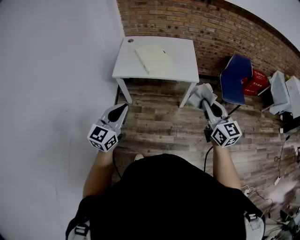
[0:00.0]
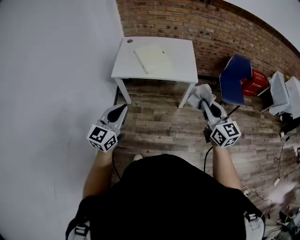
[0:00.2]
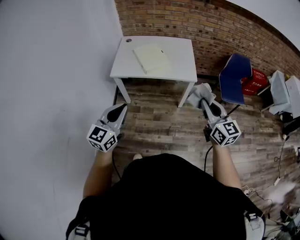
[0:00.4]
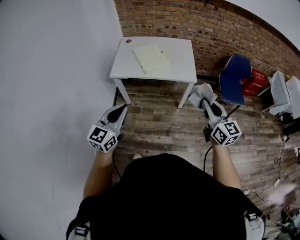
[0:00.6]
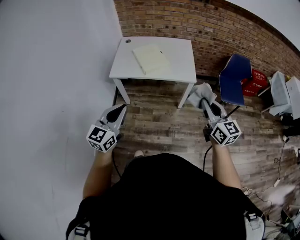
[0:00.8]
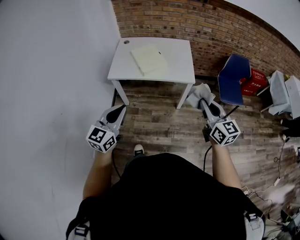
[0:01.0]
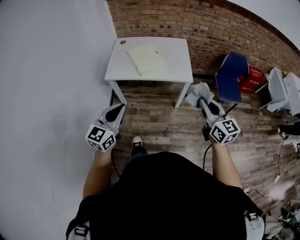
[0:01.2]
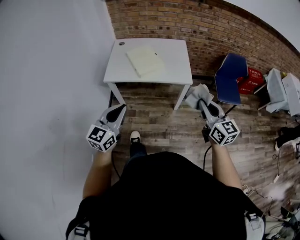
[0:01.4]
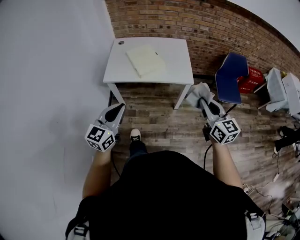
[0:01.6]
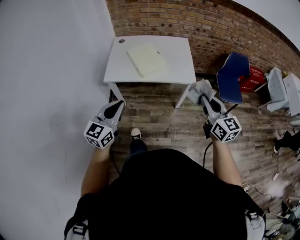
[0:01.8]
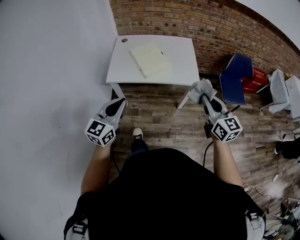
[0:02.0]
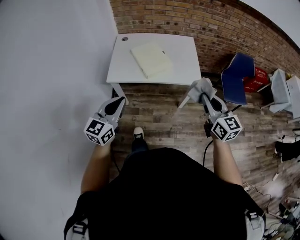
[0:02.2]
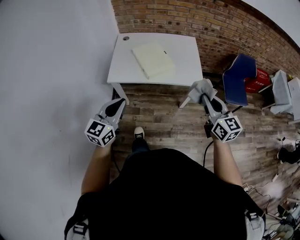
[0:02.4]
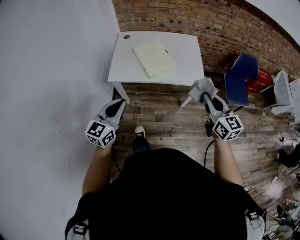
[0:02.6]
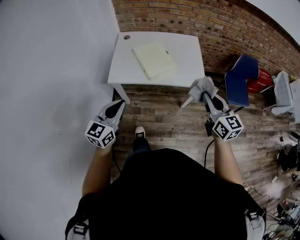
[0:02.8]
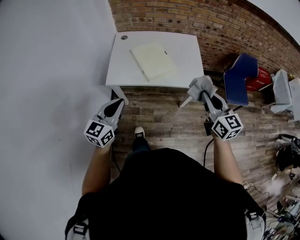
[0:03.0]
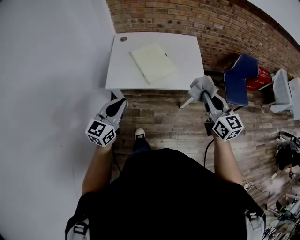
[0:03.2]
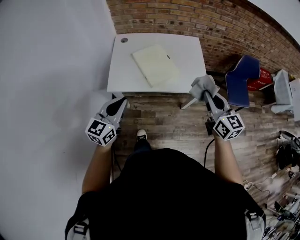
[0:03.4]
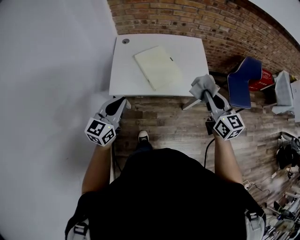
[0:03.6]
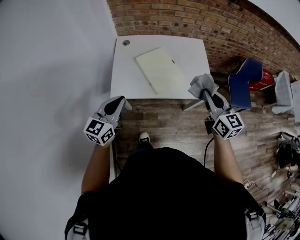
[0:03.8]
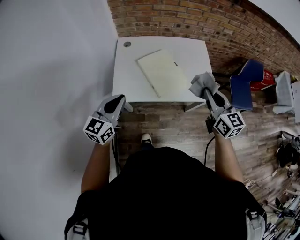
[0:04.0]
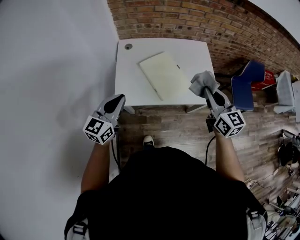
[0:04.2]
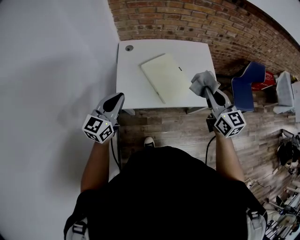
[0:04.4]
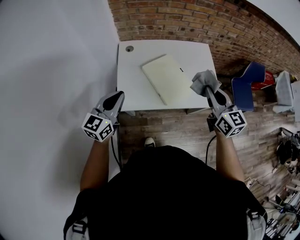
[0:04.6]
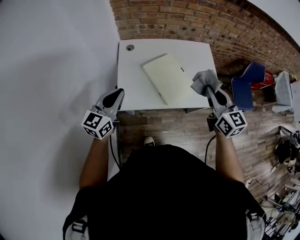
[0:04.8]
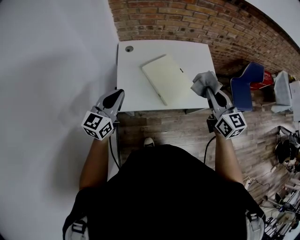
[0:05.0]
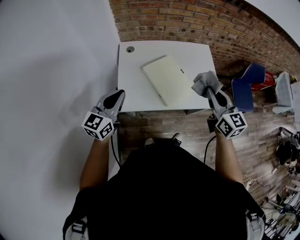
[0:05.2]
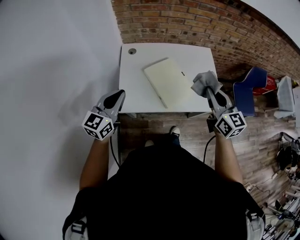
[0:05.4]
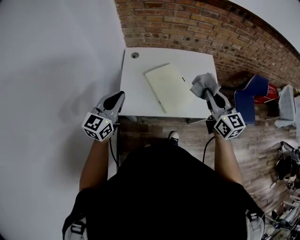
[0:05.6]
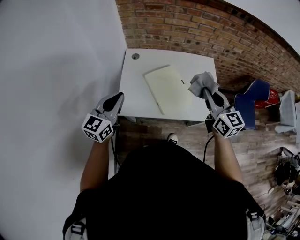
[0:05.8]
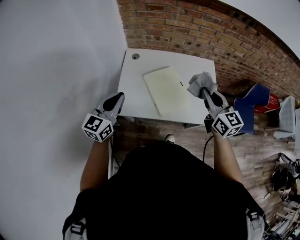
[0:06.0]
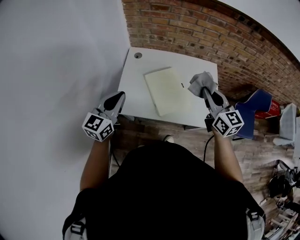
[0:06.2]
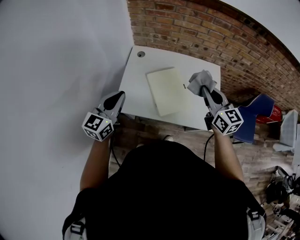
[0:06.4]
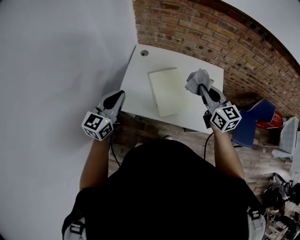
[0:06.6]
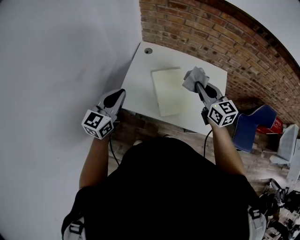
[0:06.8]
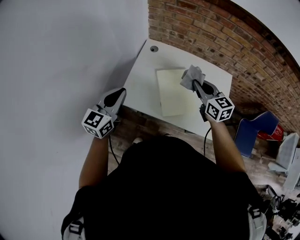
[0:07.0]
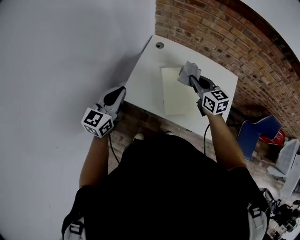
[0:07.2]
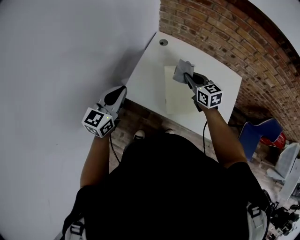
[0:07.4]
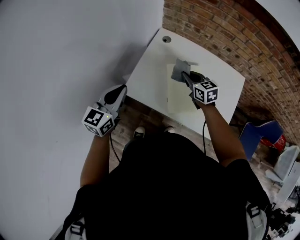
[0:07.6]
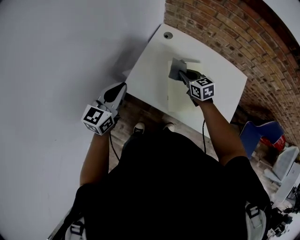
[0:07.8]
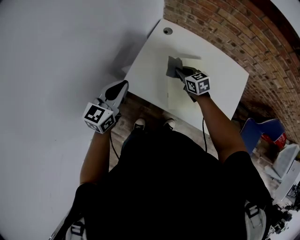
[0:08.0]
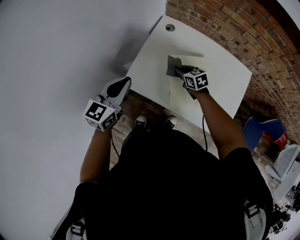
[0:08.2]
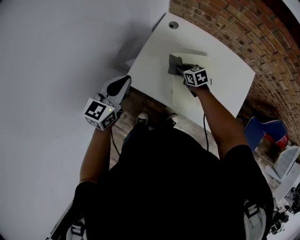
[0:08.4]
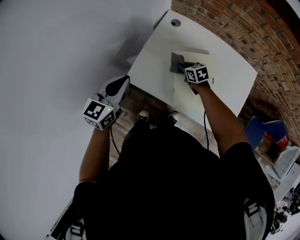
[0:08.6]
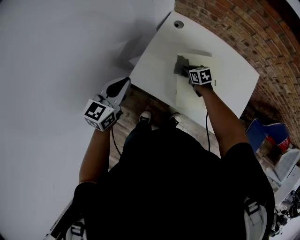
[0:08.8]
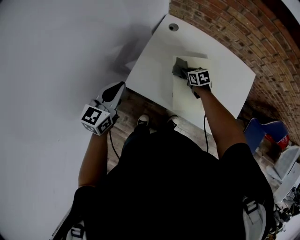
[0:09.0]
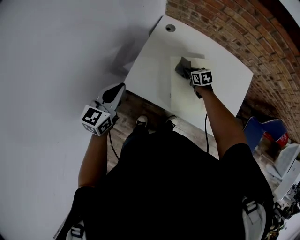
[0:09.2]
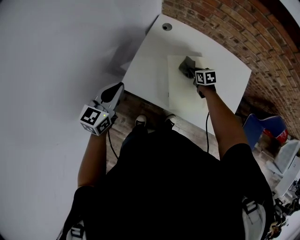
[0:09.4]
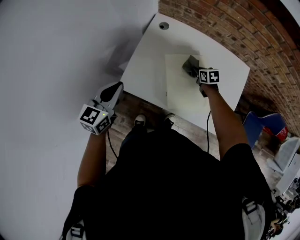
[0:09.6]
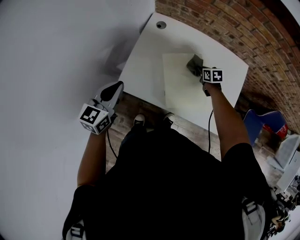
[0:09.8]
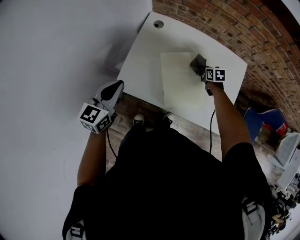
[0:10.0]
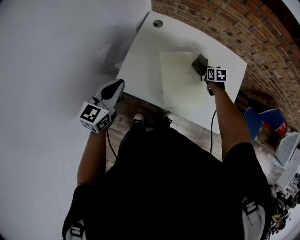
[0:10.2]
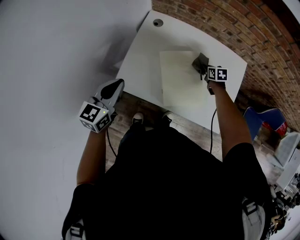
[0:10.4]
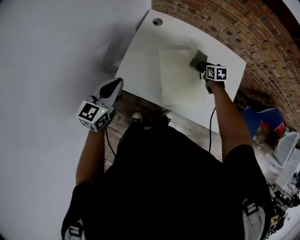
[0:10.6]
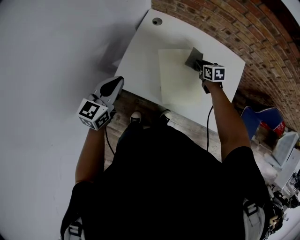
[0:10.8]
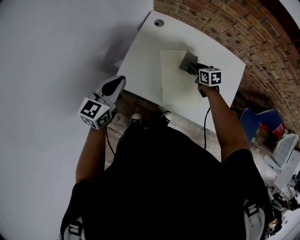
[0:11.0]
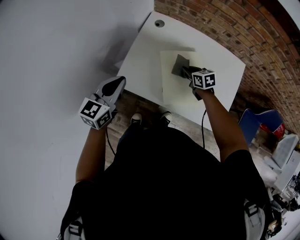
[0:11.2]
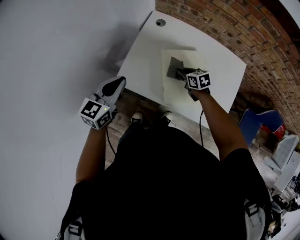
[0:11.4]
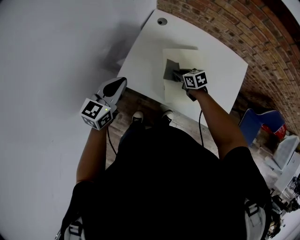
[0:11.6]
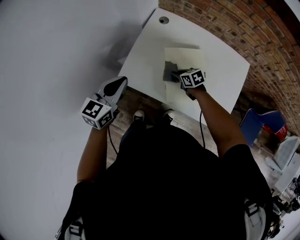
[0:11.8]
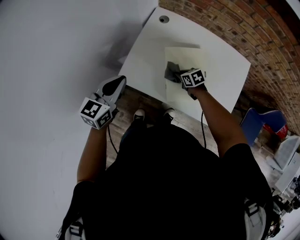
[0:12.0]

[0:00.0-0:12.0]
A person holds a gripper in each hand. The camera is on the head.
0.0 to 1.6 s: The two grippers go roughly 5 cm forward.
1.6 to 3.0 s: The grippers both shift forward and to the left by roughly 15 cm.
3.0 to 4.4 s: Both grippers travel together forward and to the left, some 25 cm.
4.4 to 6.0 s: The right gripper is displaced forward by roughly 5 cm.
6.0 to 7.6 s: The left gripper ends up about 5 cm from where it was, and changes its angle by approximately 20 degrees, while the right gripper changes place by approximately 30 cm, and swivels roughly 40 degrees.
7.6 to 9.0 s: The right gripper heads downward, covering about 20 cm, and rotates about 20 degrees.
9.0 to 10.4 s: The right gripper goes some 20 cm to the right, while the left gripper changes place by roughly 5 cm.
10.4 to 12.0 s: The right gripper is displaced to the left by some 20 cm, and changes its angle by about 30 degrees.

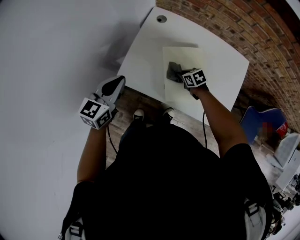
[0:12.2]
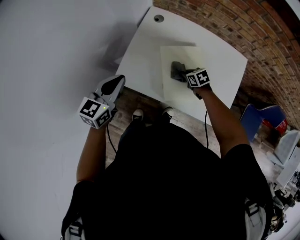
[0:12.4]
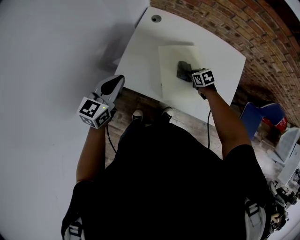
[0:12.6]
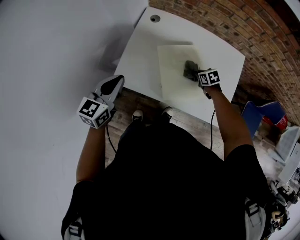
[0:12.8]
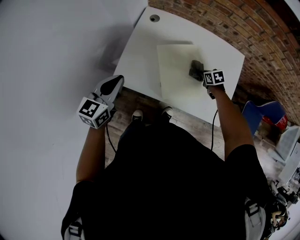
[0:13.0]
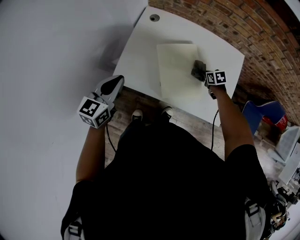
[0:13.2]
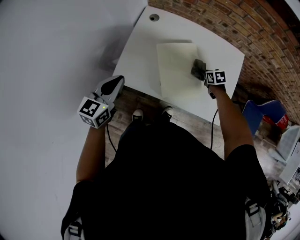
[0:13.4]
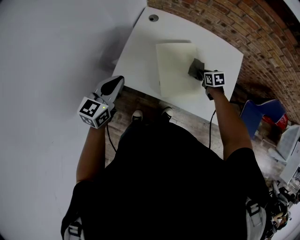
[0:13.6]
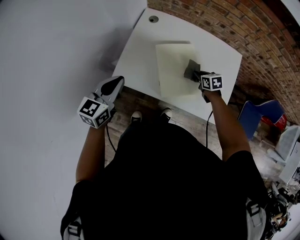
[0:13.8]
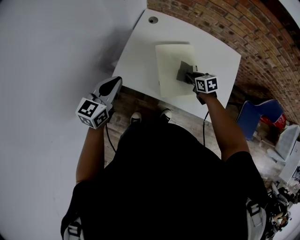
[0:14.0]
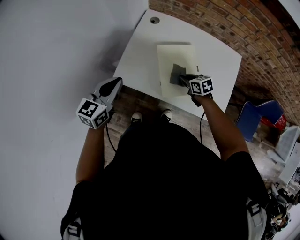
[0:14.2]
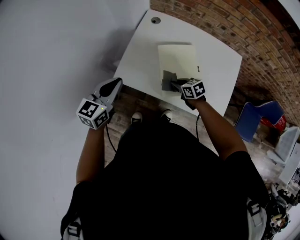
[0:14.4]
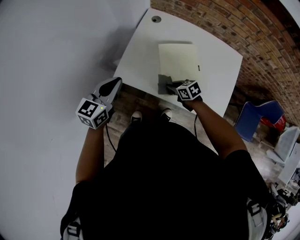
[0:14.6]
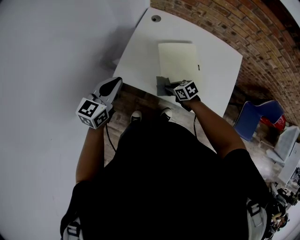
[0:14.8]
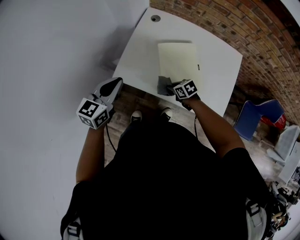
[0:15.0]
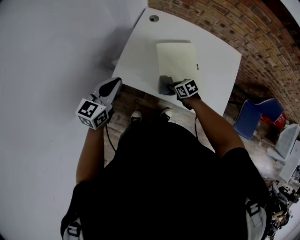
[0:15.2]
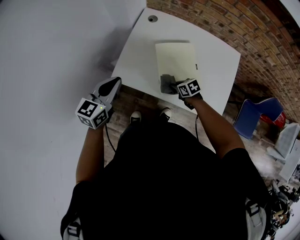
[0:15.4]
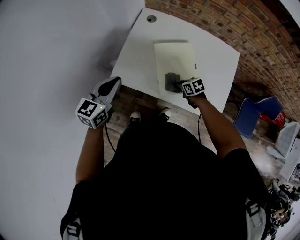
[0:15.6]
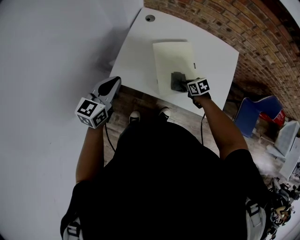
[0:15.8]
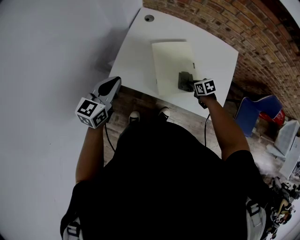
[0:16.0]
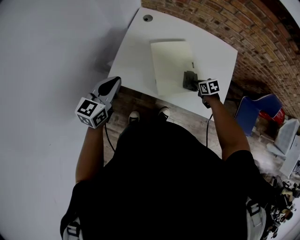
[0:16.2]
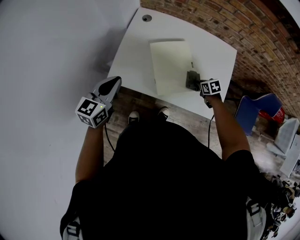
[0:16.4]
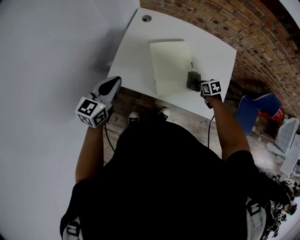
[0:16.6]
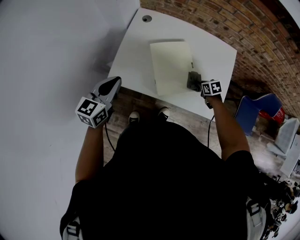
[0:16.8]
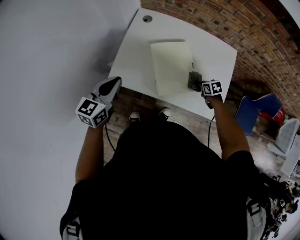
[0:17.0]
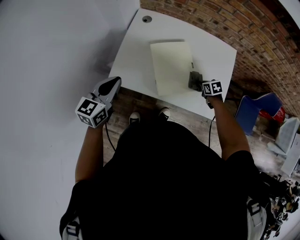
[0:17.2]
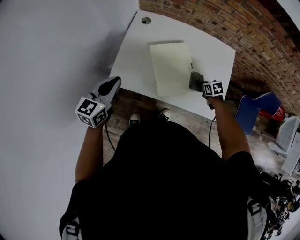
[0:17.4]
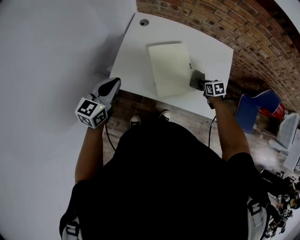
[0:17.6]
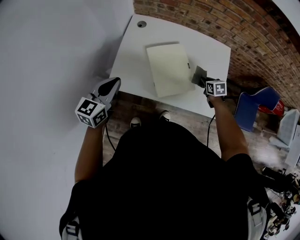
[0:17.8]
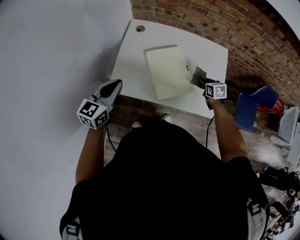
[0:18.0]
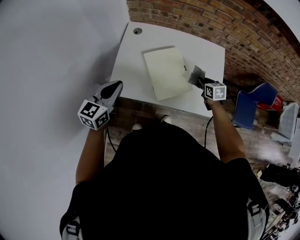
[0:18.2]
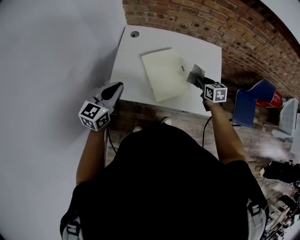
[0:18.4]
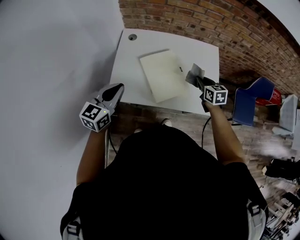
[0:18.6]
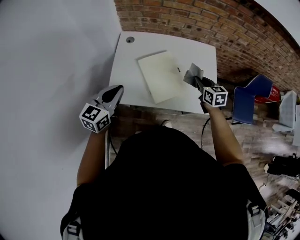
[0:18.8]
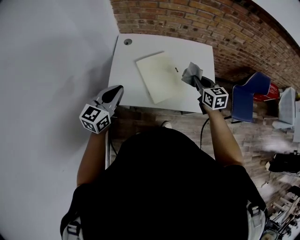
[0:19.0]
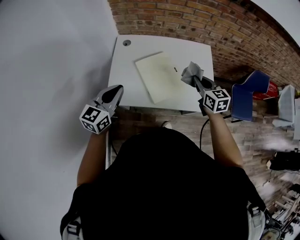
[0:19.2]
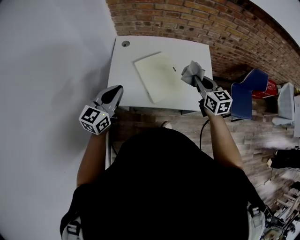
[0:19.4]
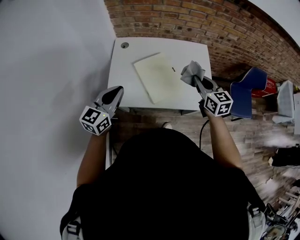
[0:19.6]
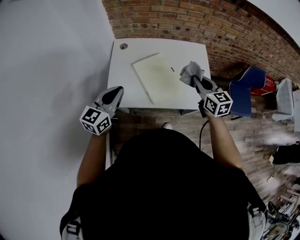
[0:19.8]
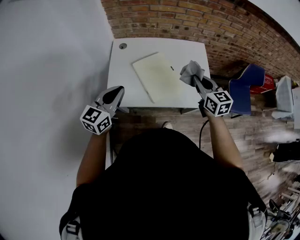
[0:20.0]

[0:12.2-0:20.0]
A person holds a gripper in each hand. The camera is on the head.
12.2 to 13.8 s: The right gripper shifts some 10 cm to the right.
13.8 to 15.4 s: The right gripper is displaced to the left by about 15 cm.
15.4 to 16.8 s: The right gripper is displaced to the right by approximately 20 cm.
16.8 to 18.4 s: The right gripper travels upward by some 15 cm, and changes its angle by about 30 degrees.
18.4 to 20.0 s: The right gripper moves upward and backward, approximately 20 cm, and swivels roughly 20 degrees.

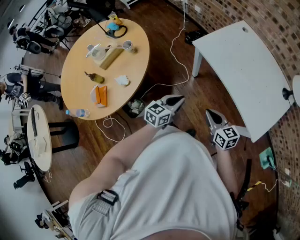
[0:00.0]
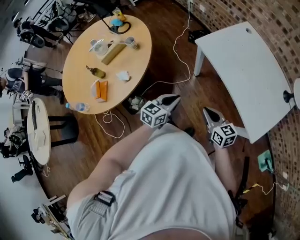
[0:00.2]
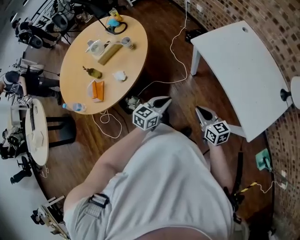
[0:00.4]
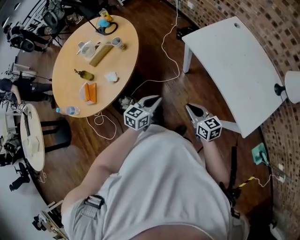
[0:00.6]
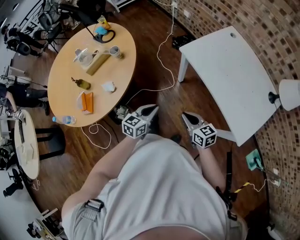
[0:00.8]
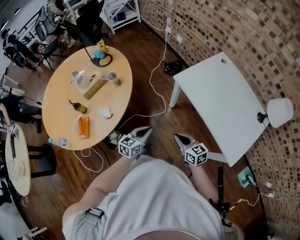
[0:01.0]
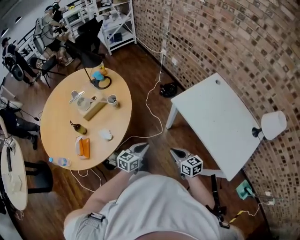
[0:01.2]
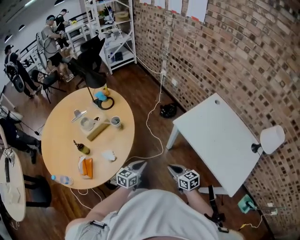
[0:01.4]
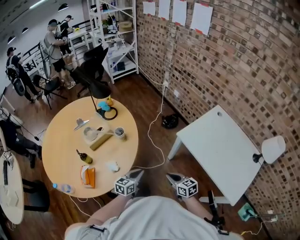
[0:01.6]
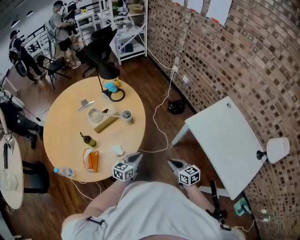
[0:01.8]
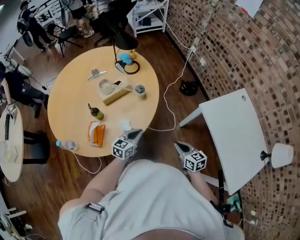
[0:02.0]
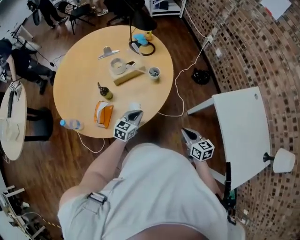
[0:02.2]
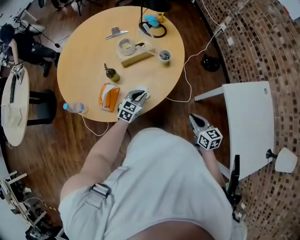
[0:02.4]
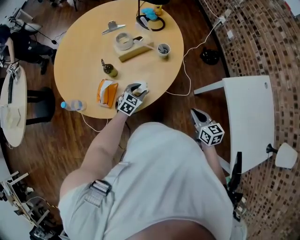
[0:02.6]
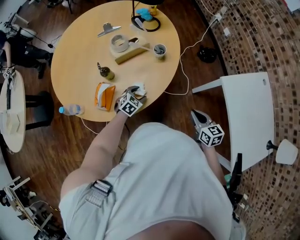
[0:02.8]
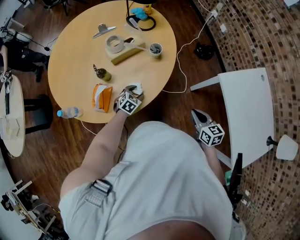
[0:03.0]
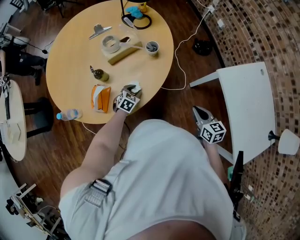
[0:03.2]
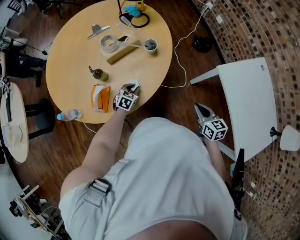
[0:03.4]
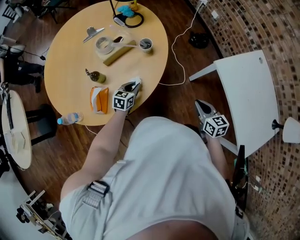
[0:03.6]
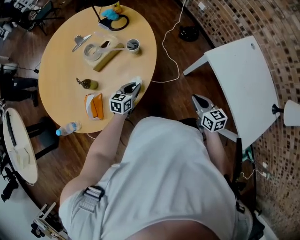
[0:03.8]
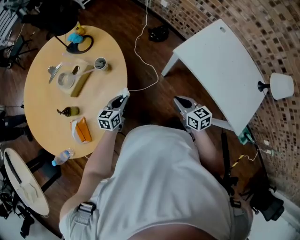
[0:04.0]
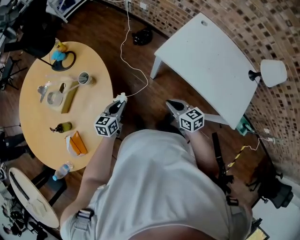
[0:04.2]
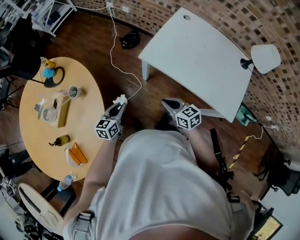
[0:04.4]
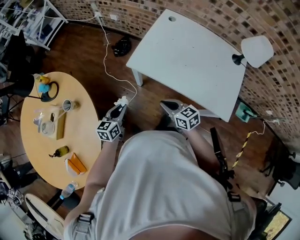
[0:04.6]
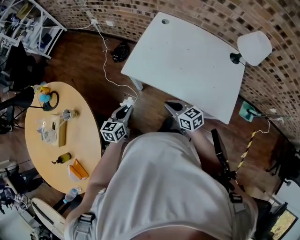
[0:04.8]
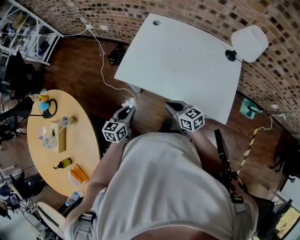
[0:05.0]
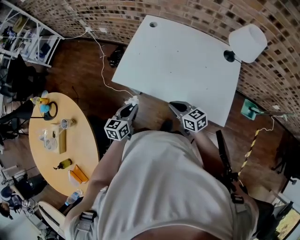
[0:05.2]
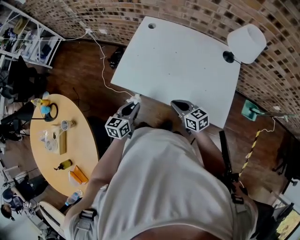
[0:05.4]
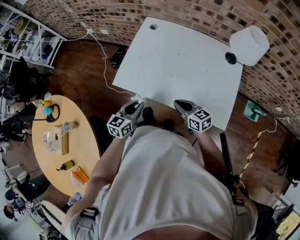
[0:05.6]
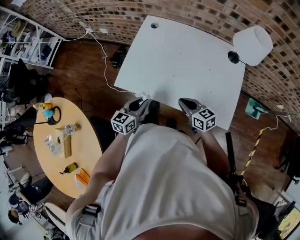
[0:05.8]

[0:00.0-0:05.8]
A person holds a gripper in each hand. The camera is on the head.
0.0 to 1.4 s: The grippers both shift to the left and forward by approximately 15 cm.
1.4 to 2.8 s: The left gripper shifts roughly 30 cm to the left, downward and forward, tips its fingers downward by about 30 degrees, and opens up. The right gripper travels to the left and forward by some 10 cm.
2.8 to 4.4 s: The left gripper ends up approximately 30 cm from where it was, turns by roughly 30 degrees, and closes. Meanwhile the right gripper moves approximately 15 cm, and changes its angle by roughly 20 degrees.
4.4 to 5.8 s: The left gripper moves to the right and forward, roughly 30 cm, and changes its angle by approximately 30 degrees, while the right gripper heads to the right, covering approximately 25 cm.
